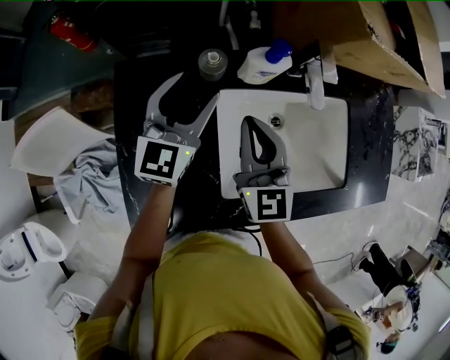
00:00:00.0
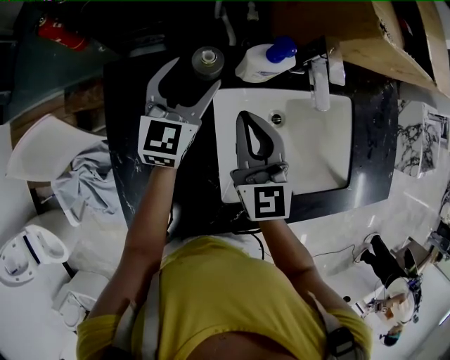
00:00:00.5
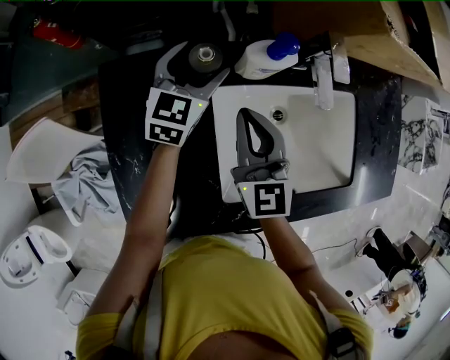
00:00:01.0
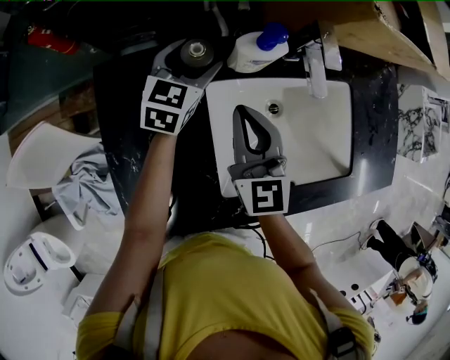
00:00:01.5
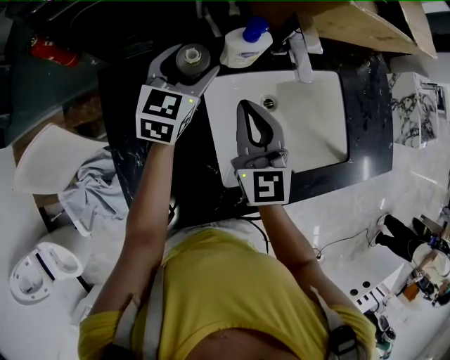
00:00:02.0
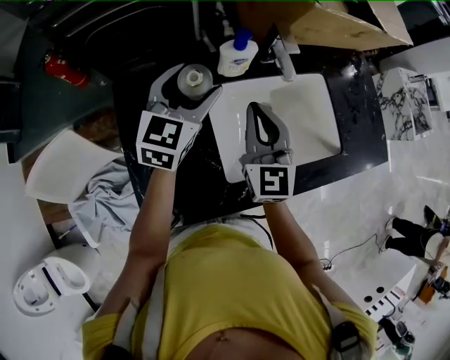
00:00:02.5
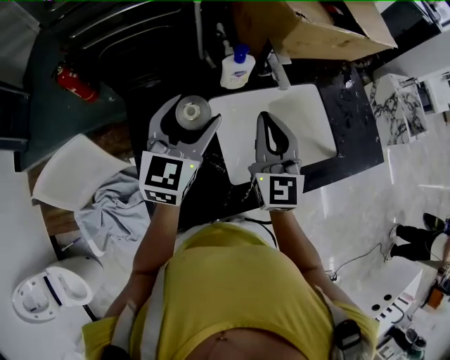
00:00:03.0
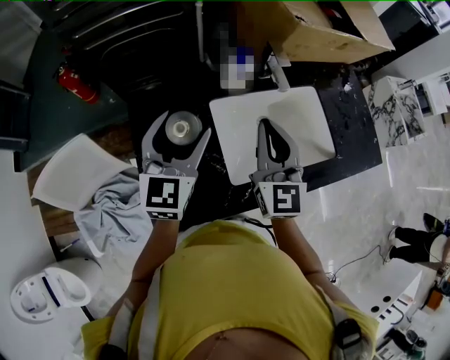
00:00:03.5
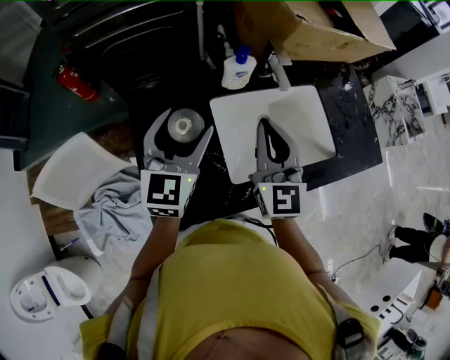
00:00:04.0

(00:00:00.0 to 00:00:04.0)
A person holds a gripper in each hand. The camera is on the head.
00:00:00.0 - 00:00:02.0: The left gripper shifts approximately 5 cm forward.
00:00:02.0 - 00:00:04.0: The right gripper travels upward and backward by about 15 cm; the left gripper goes approximately 20 cm backward and upward.

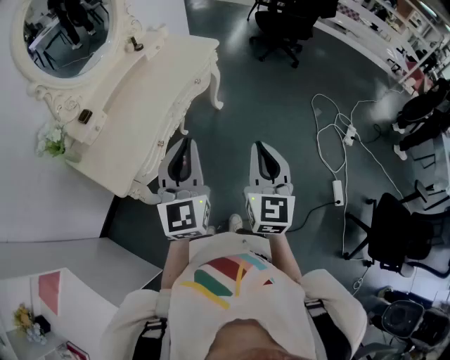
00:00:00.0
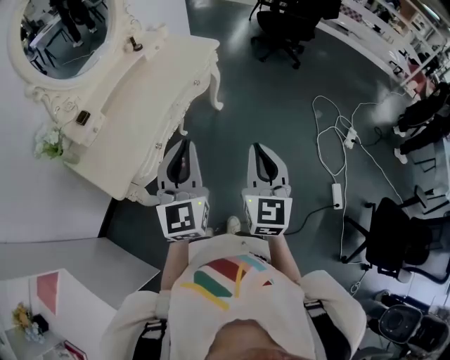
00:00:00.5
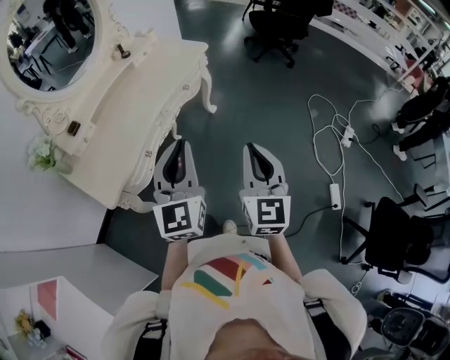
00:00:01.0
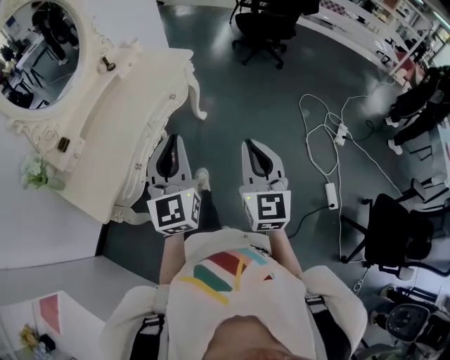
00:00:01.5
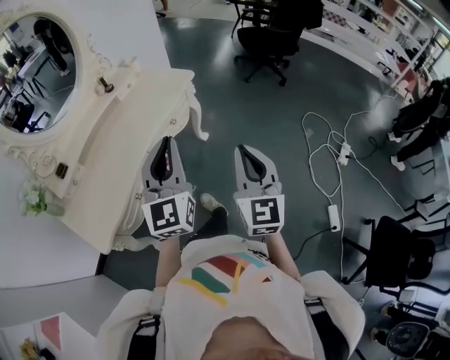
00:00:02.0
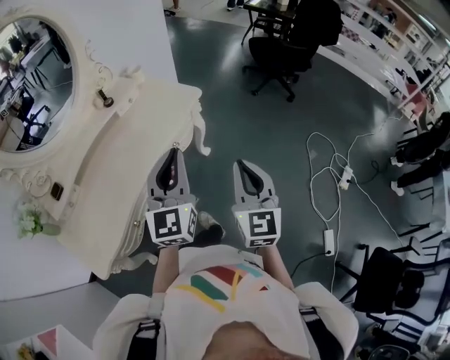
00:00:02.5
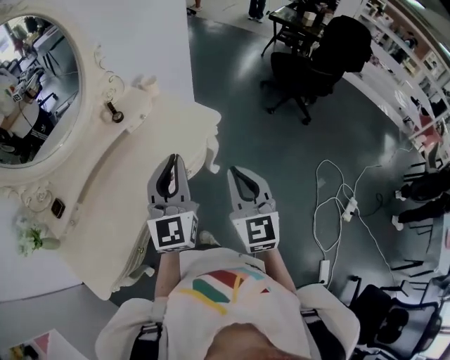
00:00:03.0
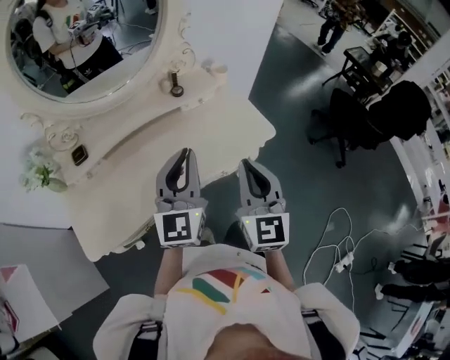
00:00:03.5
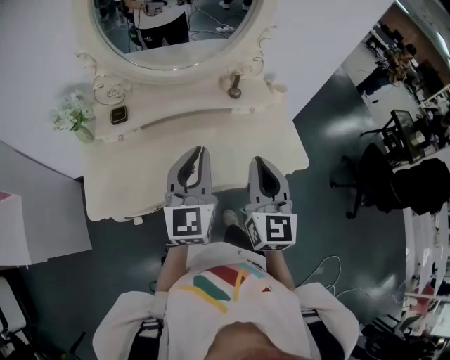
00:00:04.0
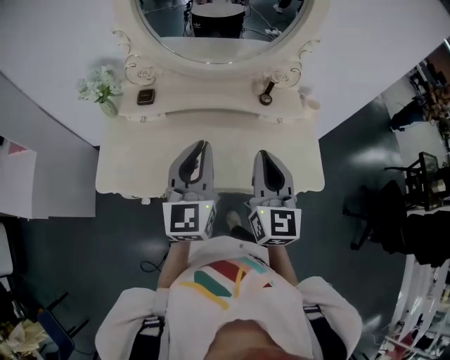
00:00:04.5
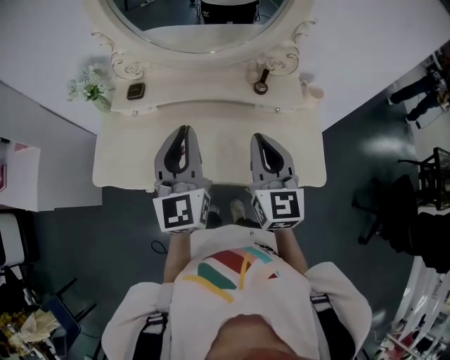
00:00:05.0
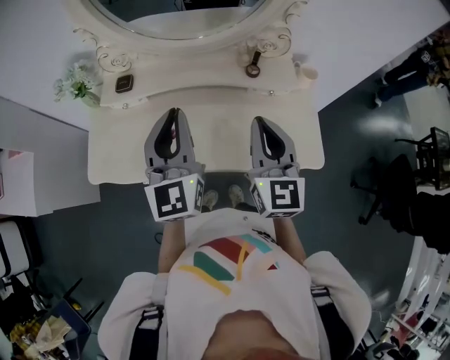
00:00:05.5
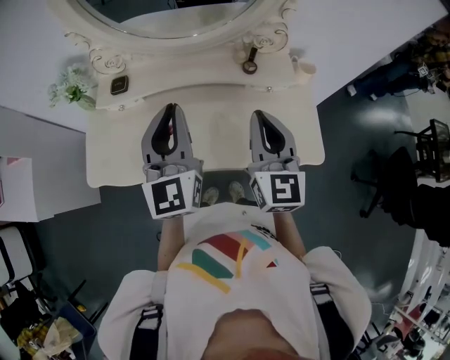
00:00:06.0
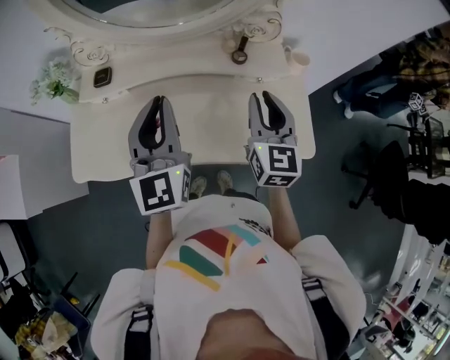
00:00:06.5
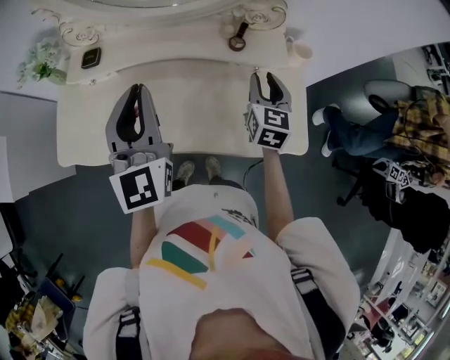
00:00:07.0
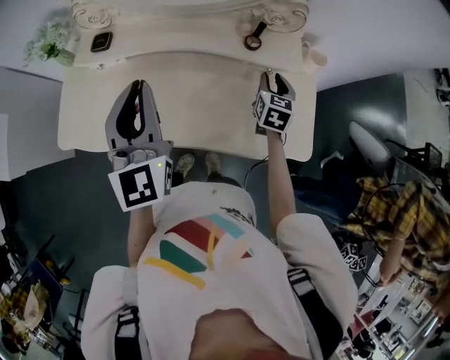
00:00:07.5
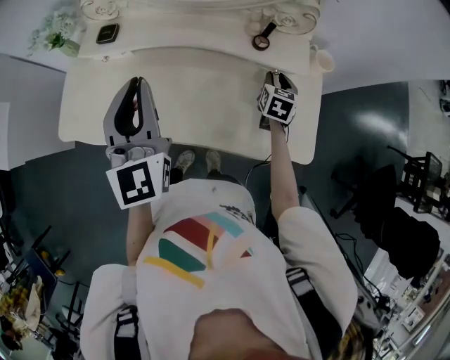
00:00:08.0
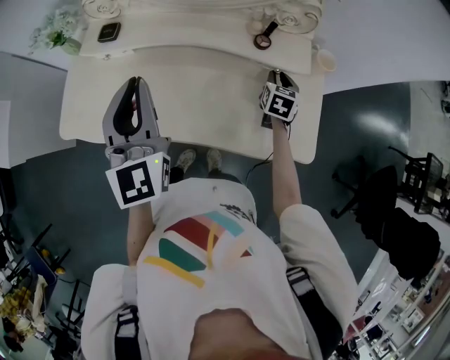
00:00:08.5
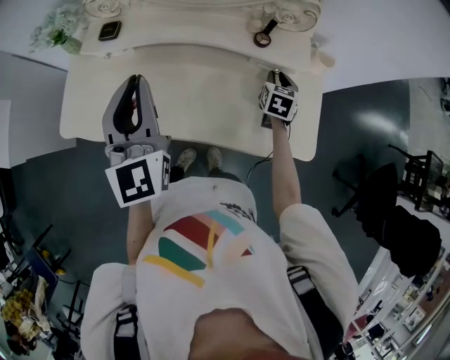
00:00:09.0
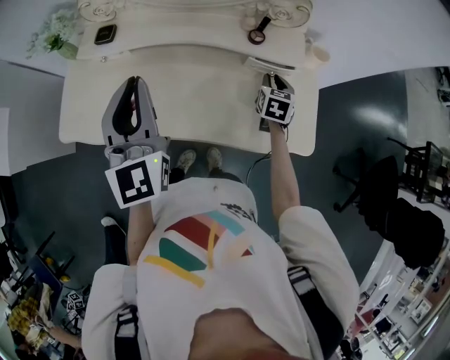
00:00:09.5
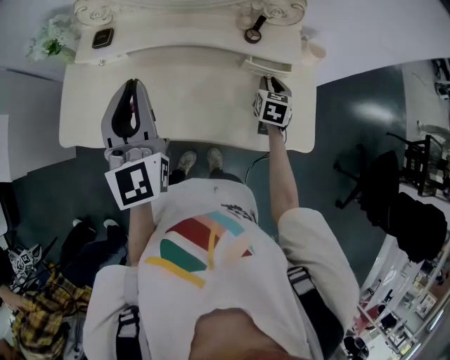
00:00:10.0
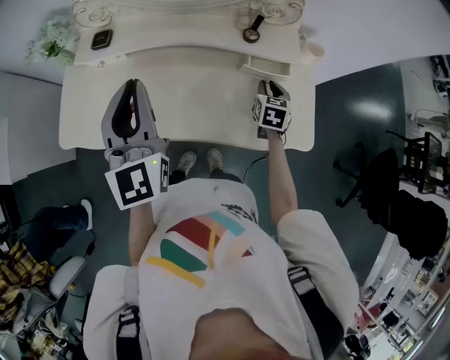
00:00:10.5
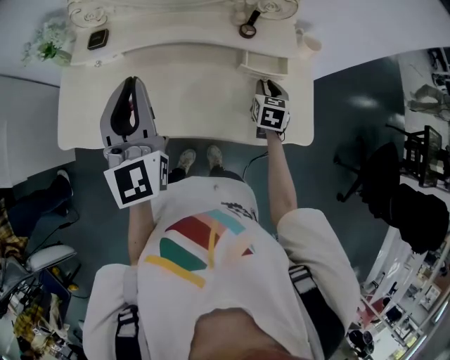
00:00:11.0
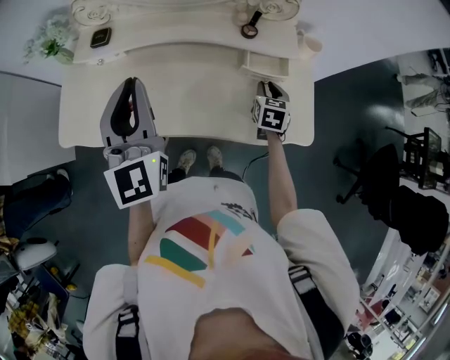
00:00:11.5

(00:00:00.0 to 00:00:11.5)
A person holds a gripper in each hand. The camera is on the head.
00:00:00.0 - 00:00:02.0: The two grippers go approximately 20 cm forward.
00:00:02.0 - 00:00:04.0: The right gripper moves roughly 40 cm, and turns by some 50 degrees; the left gripper changes place by approximately 30 cm, and changes its angle by some 40 degrees.
00:00:04.0 - 00:00:06.0: Both grippers move forward, about 10 cm.
00:00:06.0 - 00:00:07.5: The right gripper is displaced downward, forward and to the right by some 30 cm, tips its fingers downward by about 30 degrees, and opens up.
00:00:07.5 - 00:00:09.5: The grippers move only a little.
00:00:09.5 - 00:00:11.5: The right gripper is displaced backward by approximately 5 cm.

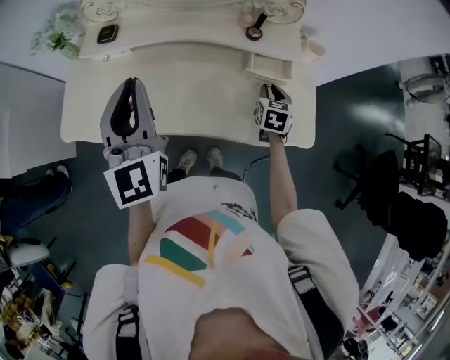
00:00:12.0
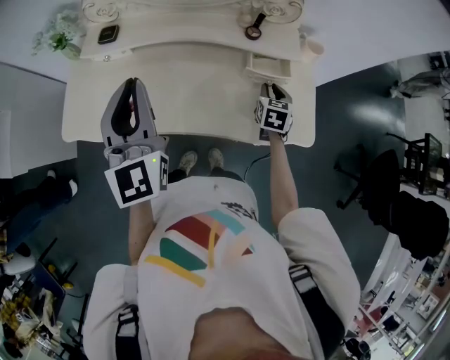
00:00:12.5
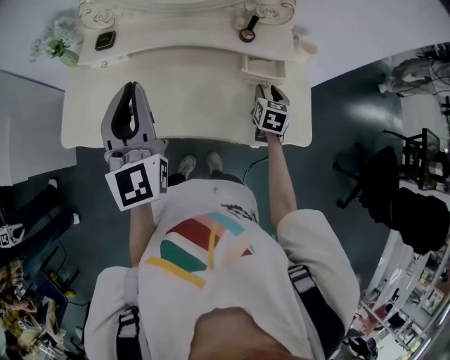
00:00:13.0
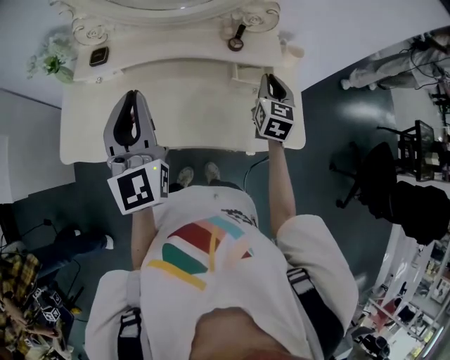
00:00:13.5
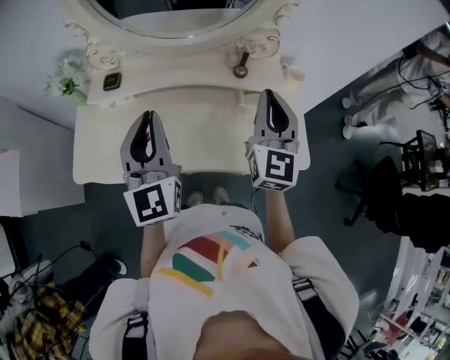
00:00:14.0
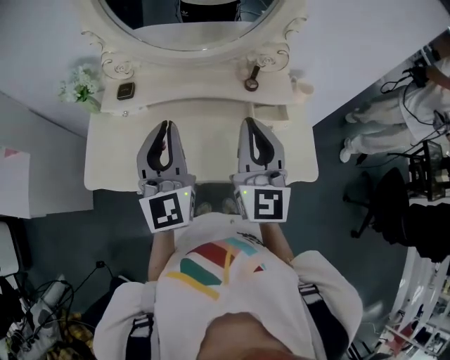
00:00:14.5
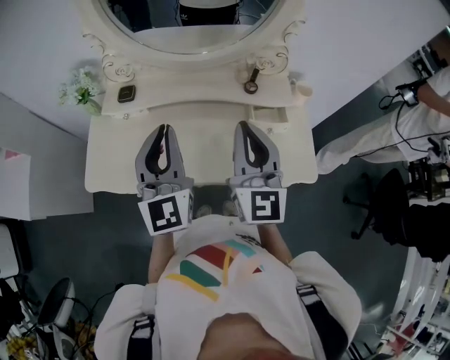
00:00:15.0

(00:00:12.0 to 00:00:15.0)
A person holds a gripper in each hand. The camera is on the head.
00:00:12.0 - 00:00:13.5: The right gripper heads upward, covering about 15 cm, and changes its angle by about 20 degrees.
00:00:13.5 - 00:00:15.0: The right gripper is displaced upward, to the left and backward by approximately 25 cm, and rotates about 30 degrees.

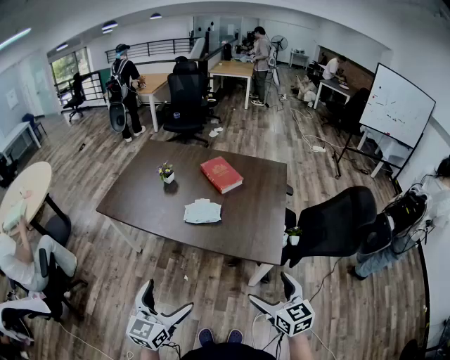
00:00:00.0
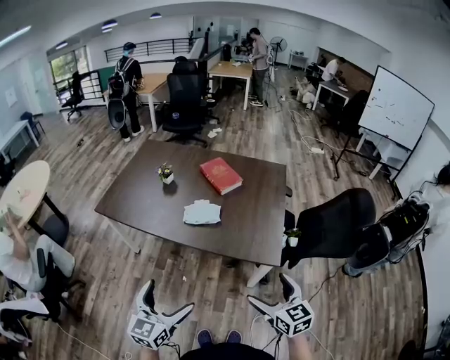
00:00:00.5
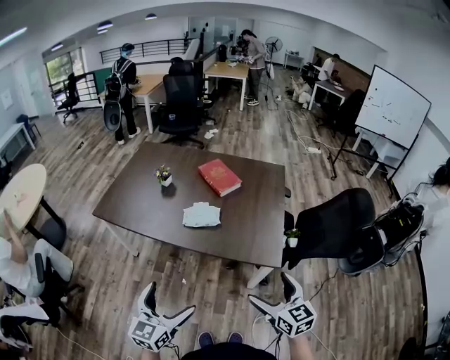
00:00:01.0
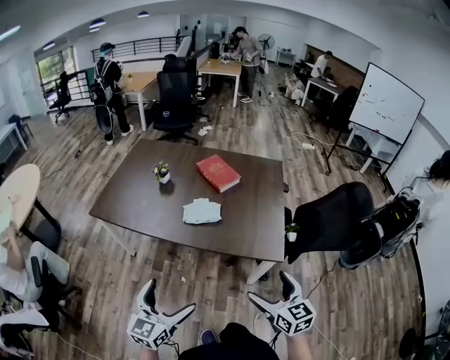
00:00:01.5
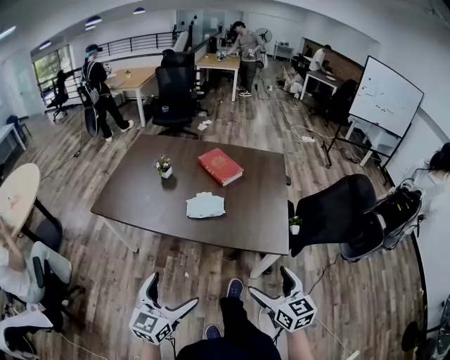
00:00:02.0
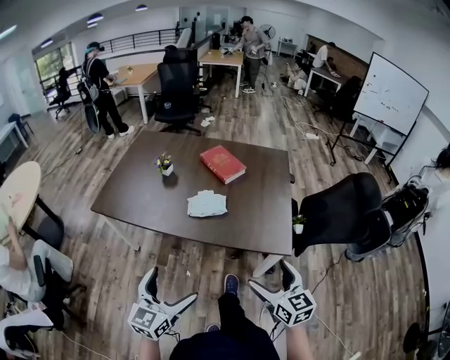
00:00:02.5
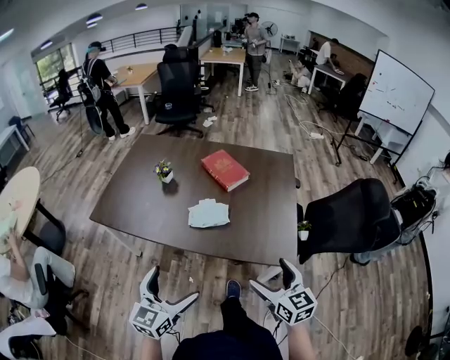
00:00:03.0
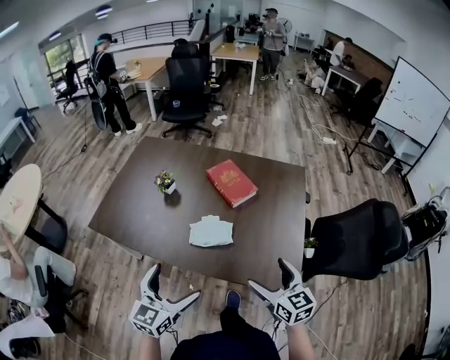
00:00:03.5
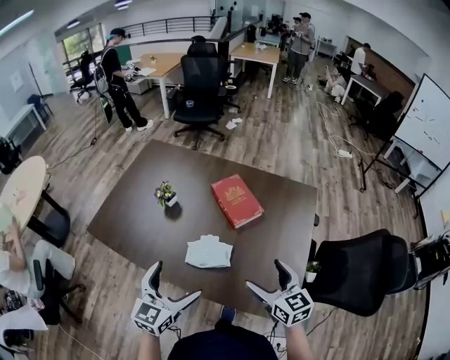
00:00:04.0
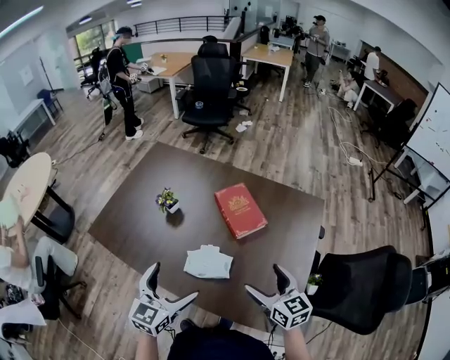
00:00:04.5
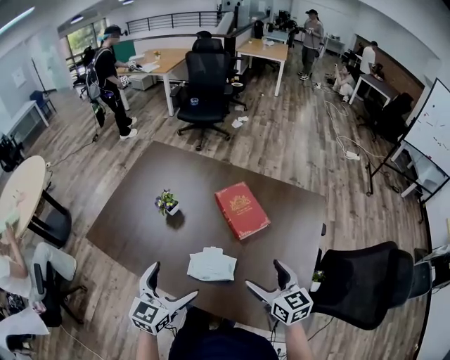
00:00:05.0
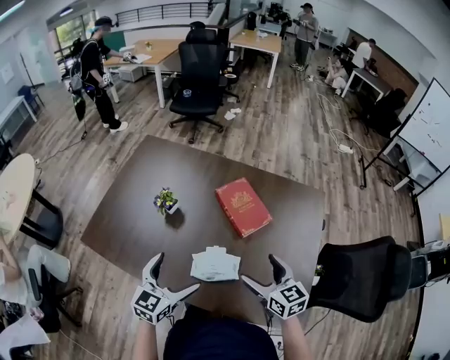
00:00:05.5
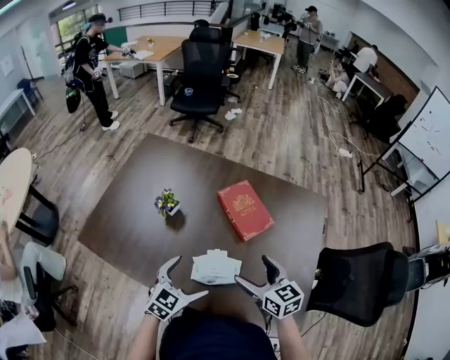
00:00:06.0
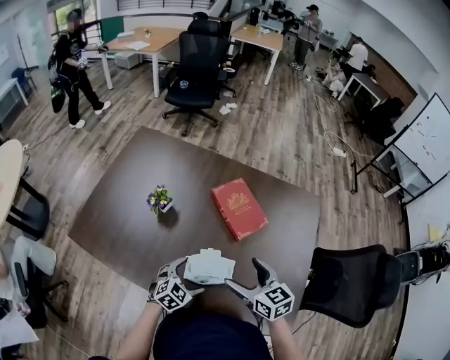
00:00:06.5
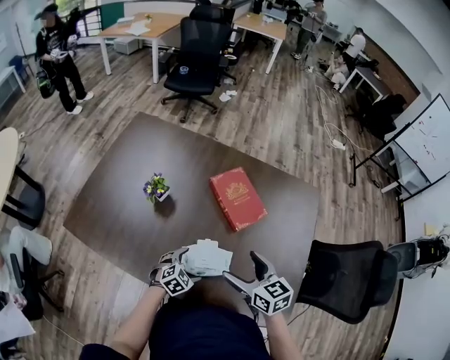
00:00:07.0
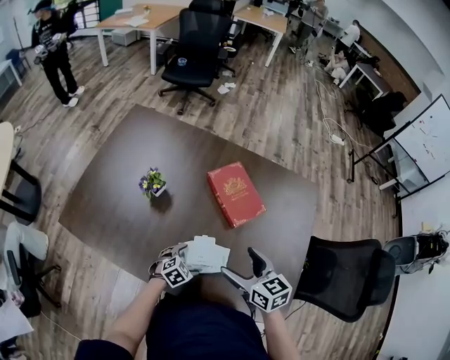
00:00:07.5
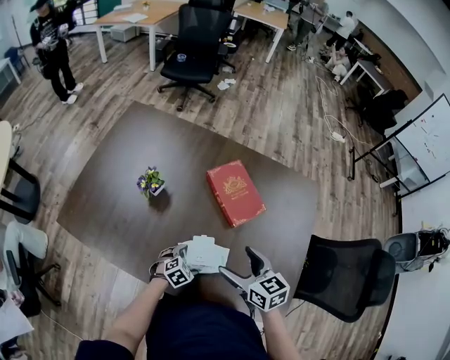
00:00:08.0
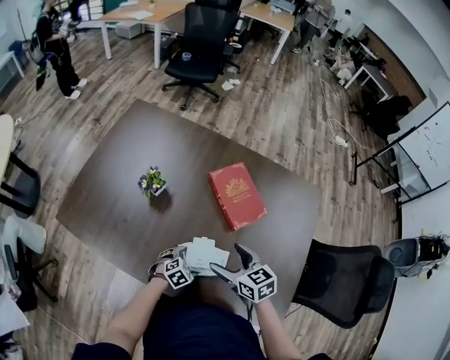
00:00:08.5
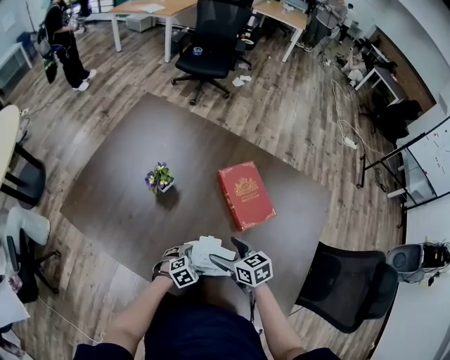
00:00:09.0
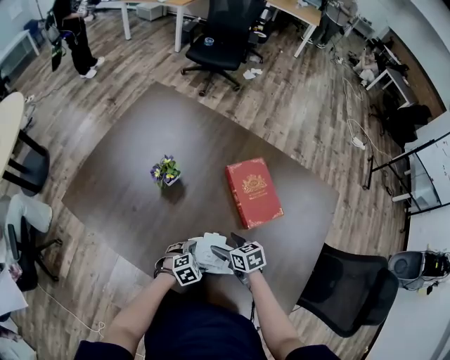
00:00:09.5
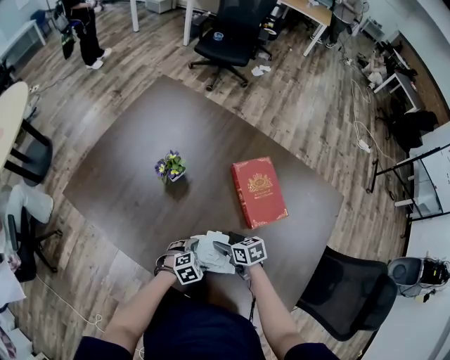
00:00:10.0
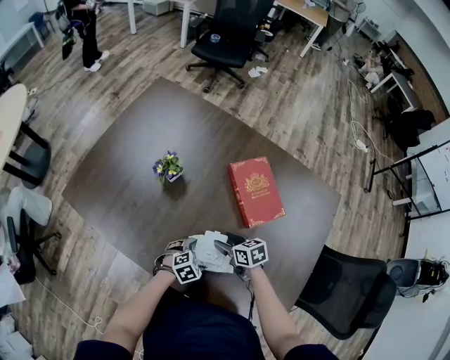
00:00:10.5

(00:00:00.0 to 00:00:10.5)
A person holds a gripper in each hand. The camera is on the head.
00:00:00.0 - 00:00:02.0: The two grippers go approximately 5 cm to the left.
00:00:02.0 - 00:00:04.0: Both grippers travel together forward, some 35 cm.
00:00:04.0 - 00:00:06.5: The left gripper heads downward and forward, covering roughly 30 cm, and swivels approximately 40 degrees, while the right gripper is displaced forward, to the left and downward by approximately 20 cm.
00:00:06.5 - 00:00:08.5: The left gripper heads downward, covering some 15 cm, and swivels some 20 degrees. The right gripper travels downward by some 5 cm.
00:00:08.5 - 00:00:10.5: The right gripper goes some 15 cm downward, and turns by some 20 degrees.
